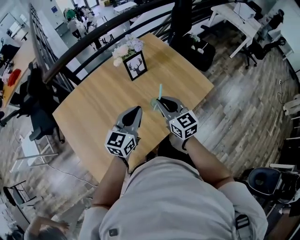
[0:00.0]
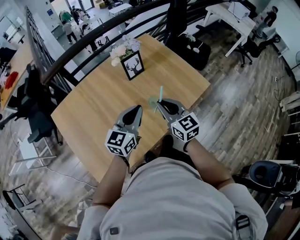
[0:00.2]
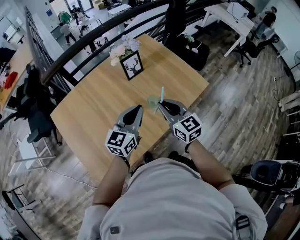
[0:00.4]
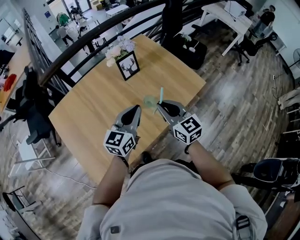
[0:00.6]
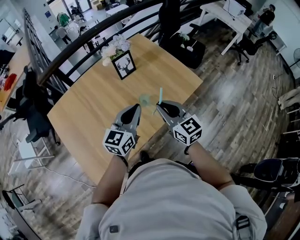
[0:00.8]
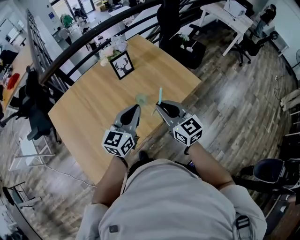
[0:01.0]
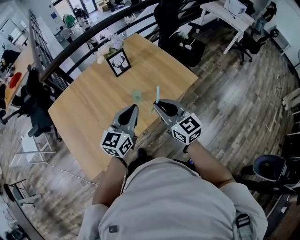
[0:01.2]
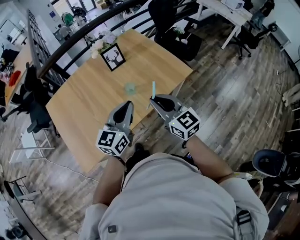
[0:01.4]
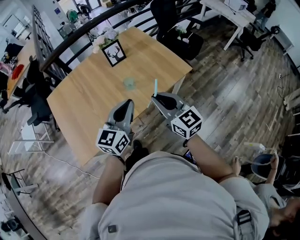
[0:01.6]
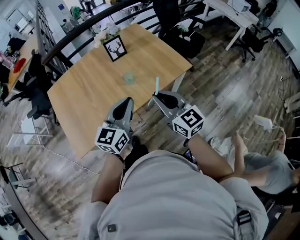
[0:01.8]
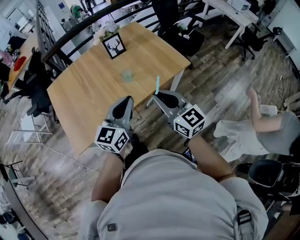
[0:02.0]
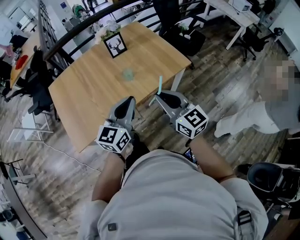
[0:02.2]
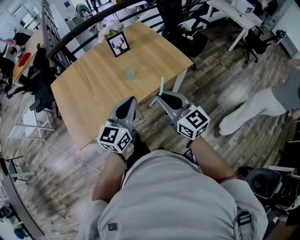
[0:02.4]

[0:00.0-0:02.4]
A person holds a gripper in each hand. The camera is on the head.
0:00.0 to 0:01.2: The right gripper goes roughly 20 cm backward, to the right and upward, while the left gripper travels to the right and backward by some 15 cm.
0:01.2 to 0:02.4: The right gripper travels backward and to the right by approximately 15 cm, while the left gripper travels backward by some 15 cm.

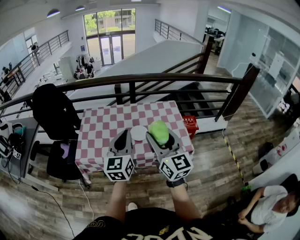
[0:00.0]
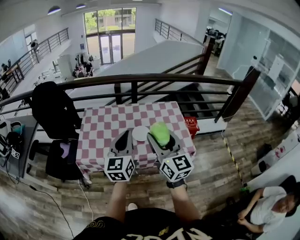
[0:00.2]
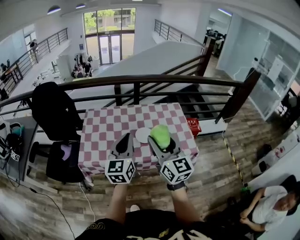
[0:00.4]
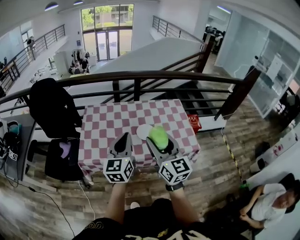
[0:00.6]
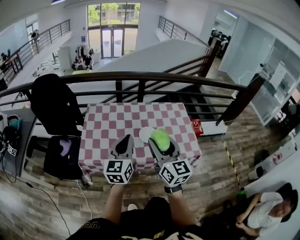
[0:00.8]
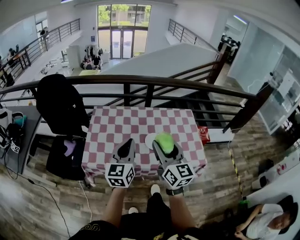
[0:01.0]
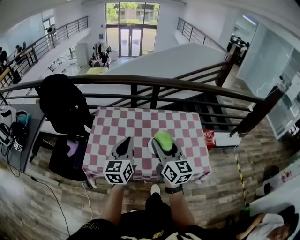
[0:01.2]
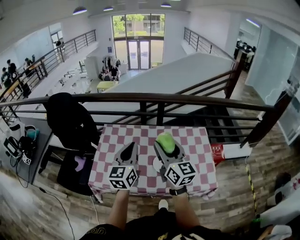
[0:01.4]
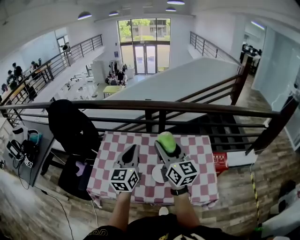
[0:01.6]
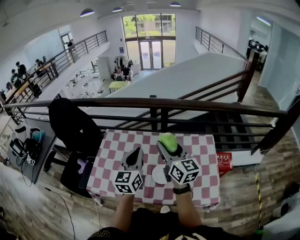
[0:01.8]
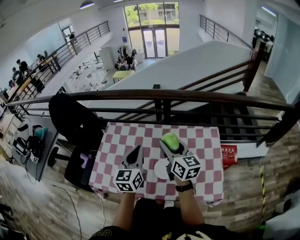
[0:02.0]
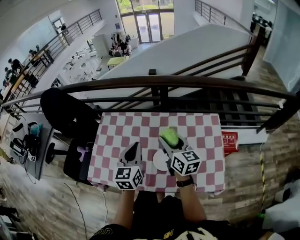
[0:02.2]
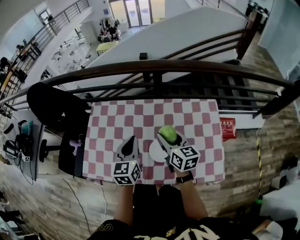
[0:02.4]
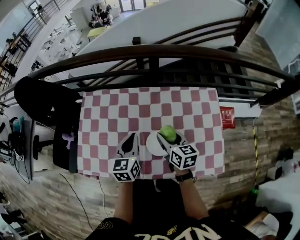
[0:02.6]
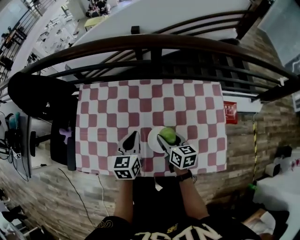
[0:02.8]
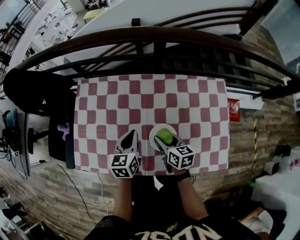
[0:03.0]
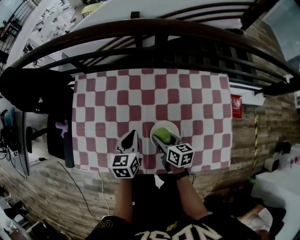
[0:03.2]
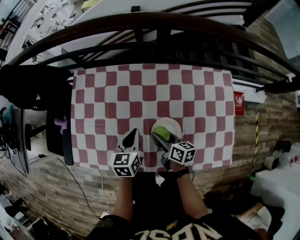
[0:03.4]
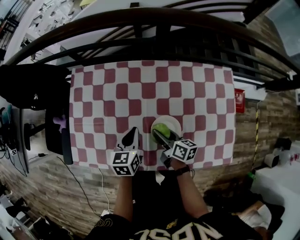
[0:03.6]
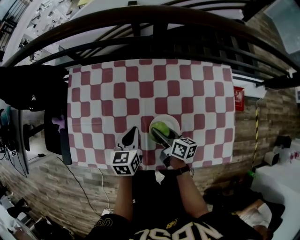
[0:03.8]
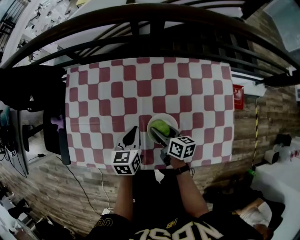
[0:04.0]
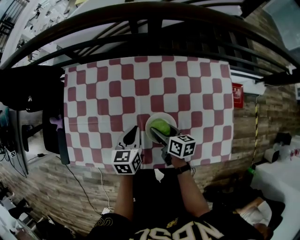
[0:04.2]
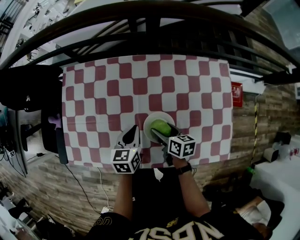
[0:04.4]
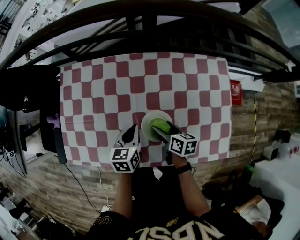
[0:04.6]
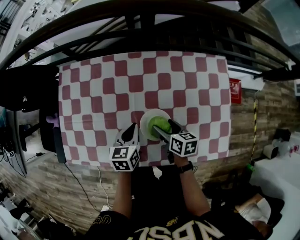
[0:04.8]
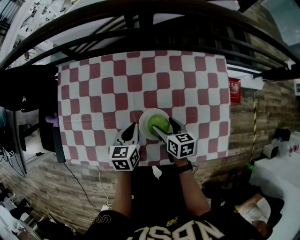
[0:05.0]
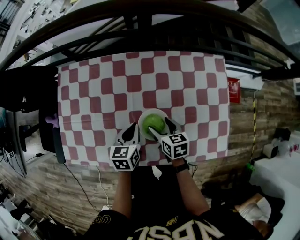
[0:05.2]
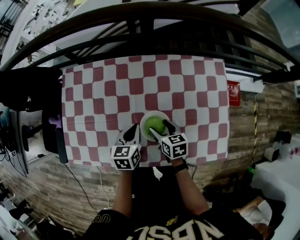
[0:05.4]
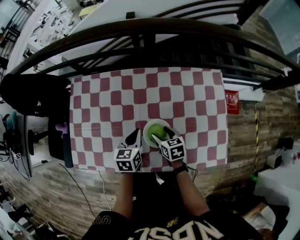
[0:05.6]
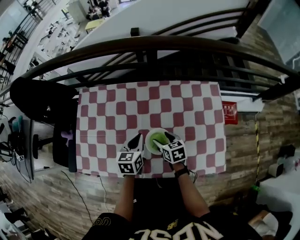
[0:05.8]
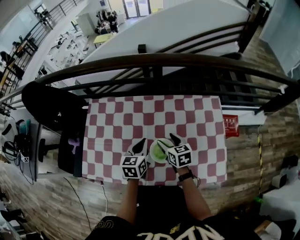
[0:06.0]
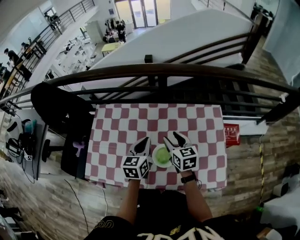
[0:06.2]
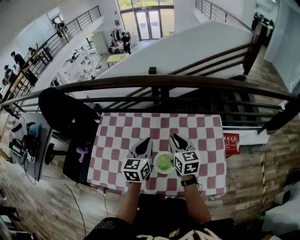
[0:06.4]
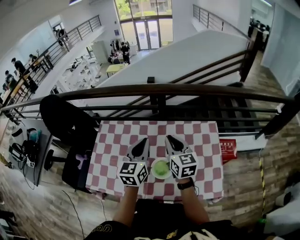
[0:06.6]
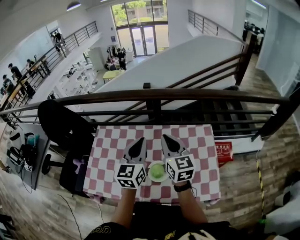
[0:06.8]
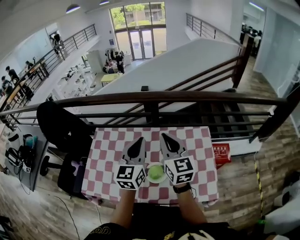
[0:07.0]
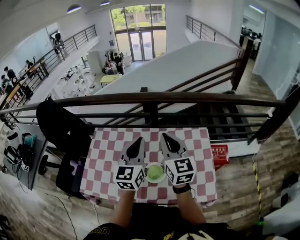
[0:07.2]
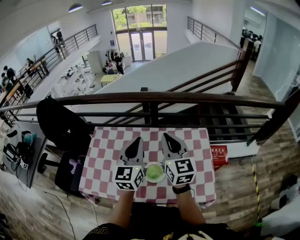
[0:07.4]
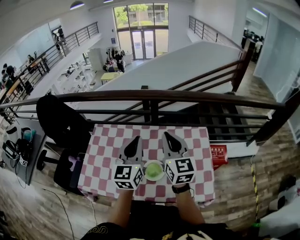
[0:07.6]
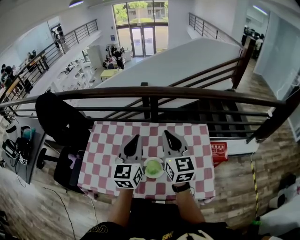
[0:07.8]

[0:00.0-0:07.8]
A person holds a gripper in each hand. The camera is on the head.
0:00.0 to 0:01.6: Both grippers travel together forward, about 25 cm.
0:01.6 to 0:03.2: The grippers both shift downward by about 35 cm. The left gripper tips its fingers downward by approximately 40 degrees; the right gripper points its fingers approximately 40 degrees further downward.
0:03.2 to 0:04.6: The right gripper changes place by about 5 cm, and opens, while the left gripper changes place by approximately 5 cm.
0:04.6 to 0:06.2: The two grippers go roughly 15 cm upward. The right gripper rotates roughly 40 degrees, and closes its fingers.
0:06.2 to 0:07.8: The grippers both shift upward by approximately 20 cm. The left gripper swivels some 30 degrees. The right gripper turns by roughly 30 degrees, and closes up.

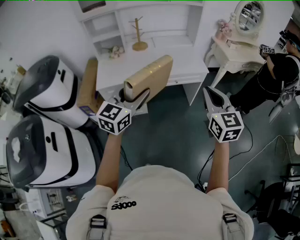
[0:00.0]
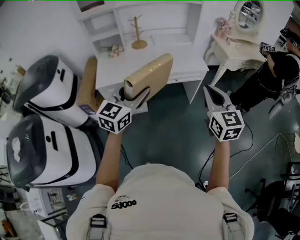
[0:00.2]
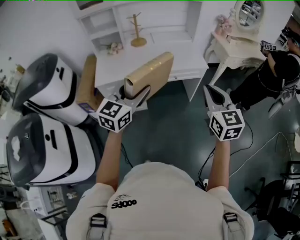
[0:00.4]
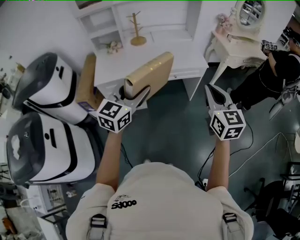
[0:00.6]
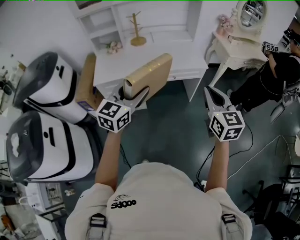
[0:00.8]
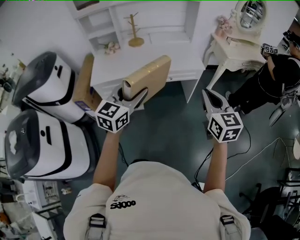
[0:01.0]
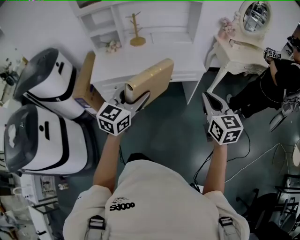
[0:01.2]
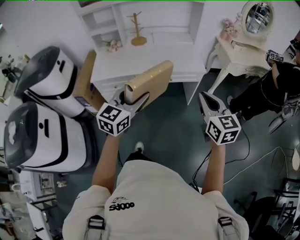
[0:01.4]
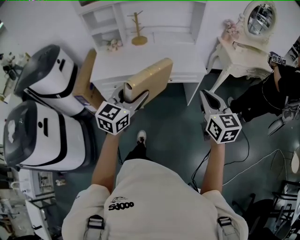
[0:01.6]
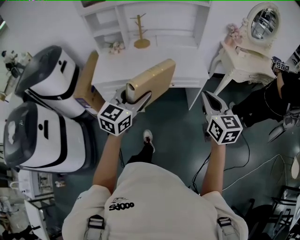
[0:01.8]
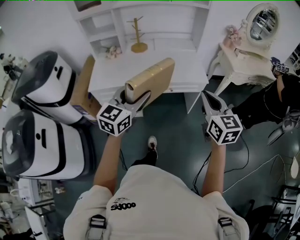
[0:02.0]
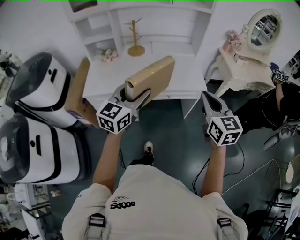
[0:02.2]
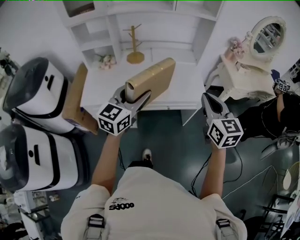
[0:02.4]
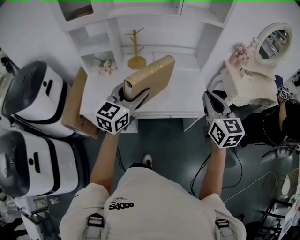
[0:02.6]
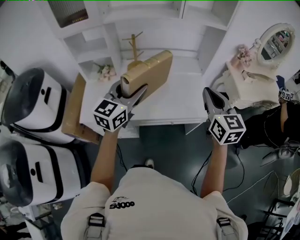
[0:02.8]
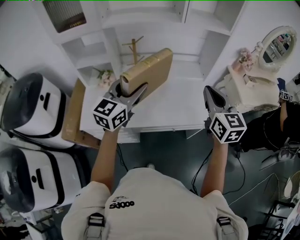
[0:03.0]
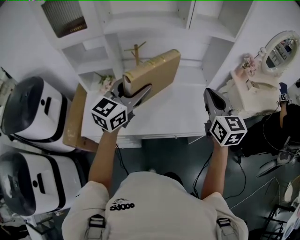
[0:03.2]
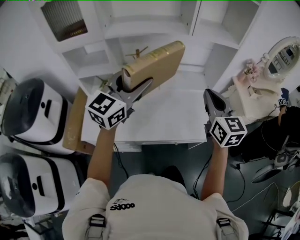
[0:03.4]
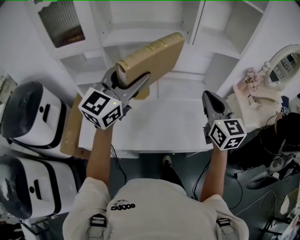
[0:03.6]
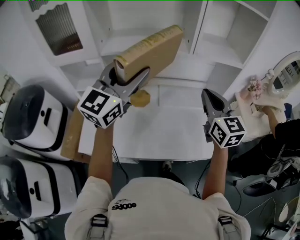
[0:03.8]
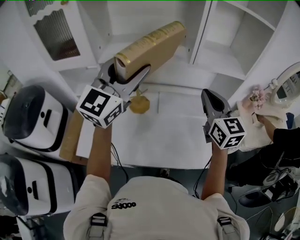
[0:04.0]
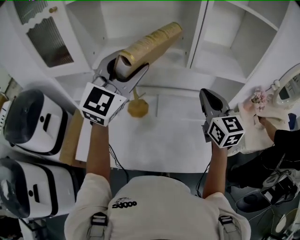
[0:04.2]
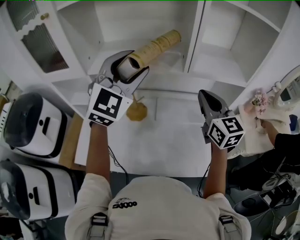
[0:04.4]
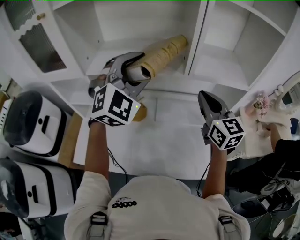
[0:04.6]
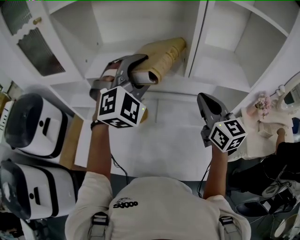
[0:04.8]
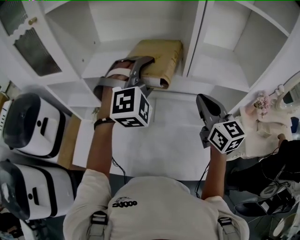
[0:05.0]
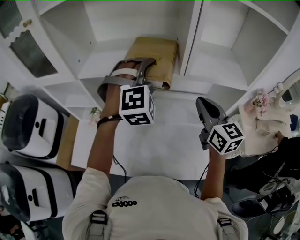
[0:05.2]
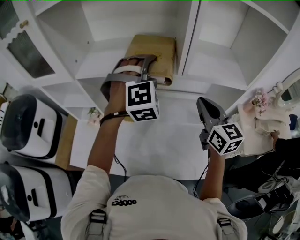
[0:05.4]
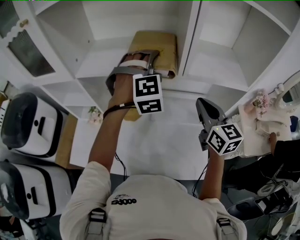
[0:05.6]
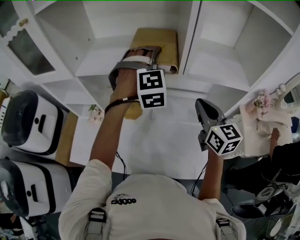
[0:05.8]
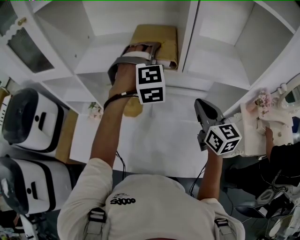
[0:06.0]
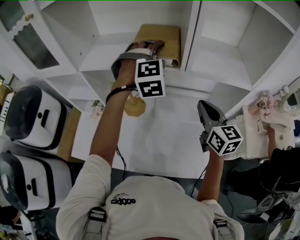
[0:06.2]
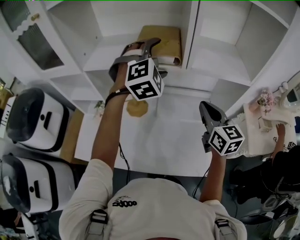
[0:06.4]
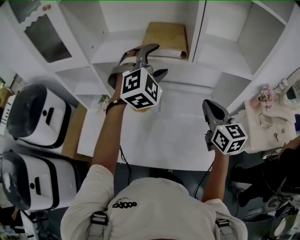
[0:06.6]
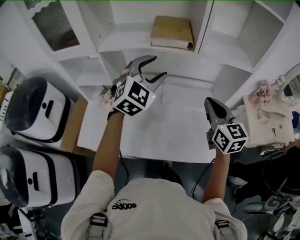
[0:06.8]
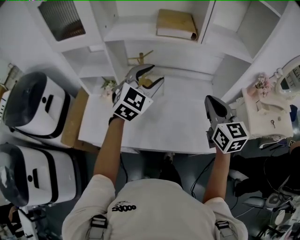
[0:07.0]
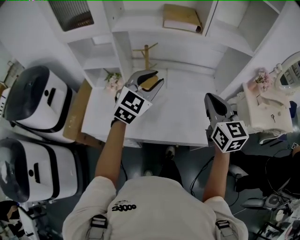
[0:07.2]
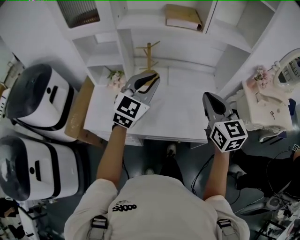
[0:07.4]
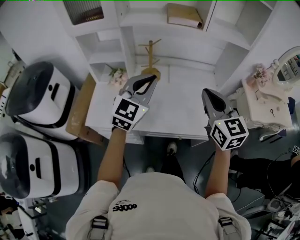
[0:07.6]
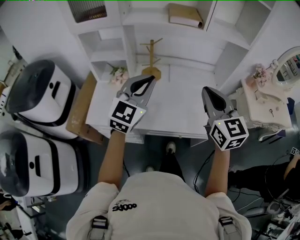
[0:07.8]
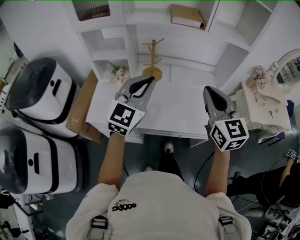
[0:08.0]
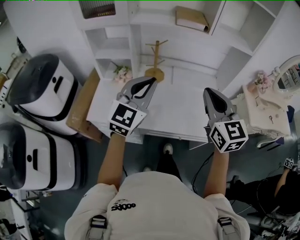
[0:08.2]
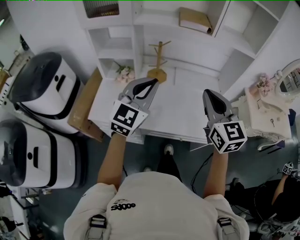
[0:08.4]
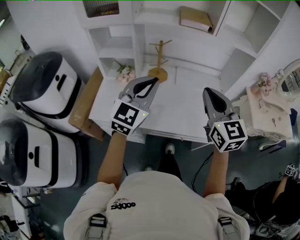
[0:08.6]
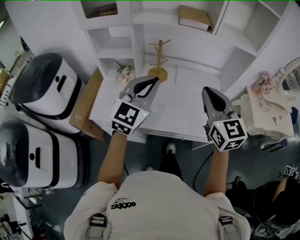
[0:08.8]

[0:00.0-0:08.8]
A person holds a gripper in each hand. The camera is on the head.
0:00.0 to 0:01.4: Both grippers travel together to the right, about 10 cm.
0:01.4 to 0:03.0: The pair of grippers is taken forward, some 40 cm.
0:03.0 to 0:04.4: The left gripper heads forward and upward, covering some 30 cm, and rolls clockwise, seen from behind, by roughly 40 degrees, while the right gripper is displaced forward by some 25 cm.
0:04.4 to 0:05.8: The right gripper is displaced downward by approximately 5 cm. Meanwhile the left gripper travels downward, forward and to the right by about 20 cm, tilts its fingers approximately 30 degrees downward, and opens its fingers.
0:05.8 to 0:07.4: The two grippers go approximately 30 cm backward and to the left. The left gripper twists roughly 50 degrees counterclockwise, seen from behind, and closes up.
0:07.4 to 0:08.8: The left gripper moves backward, some 5 cm, while the right gripper ends up approximately 5 cm from where it was.

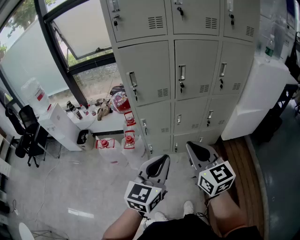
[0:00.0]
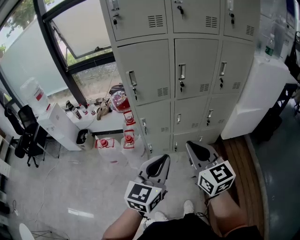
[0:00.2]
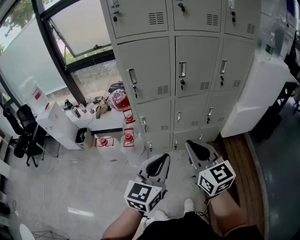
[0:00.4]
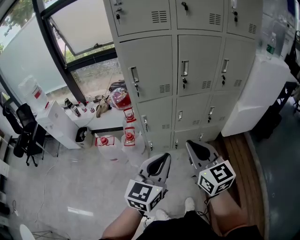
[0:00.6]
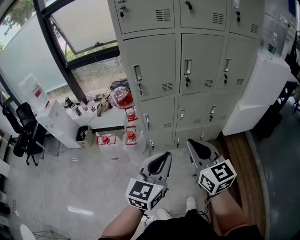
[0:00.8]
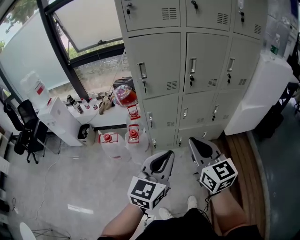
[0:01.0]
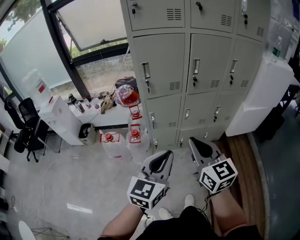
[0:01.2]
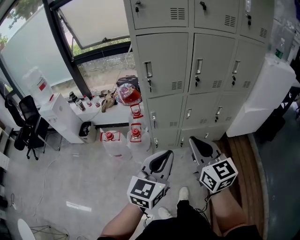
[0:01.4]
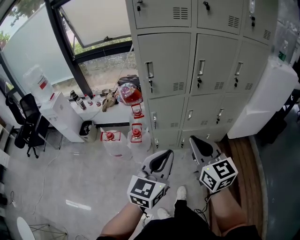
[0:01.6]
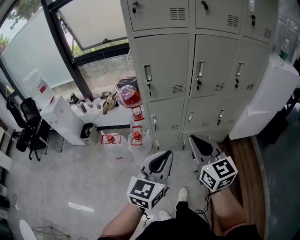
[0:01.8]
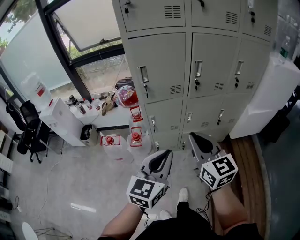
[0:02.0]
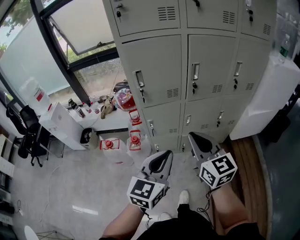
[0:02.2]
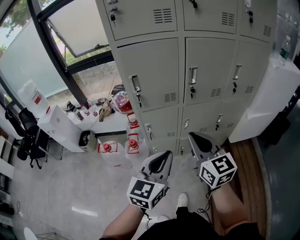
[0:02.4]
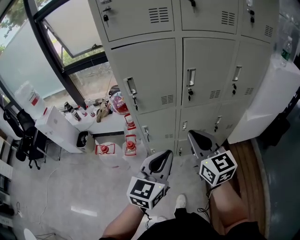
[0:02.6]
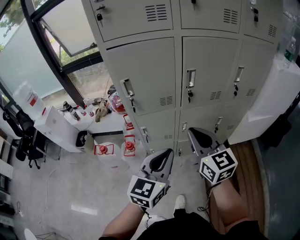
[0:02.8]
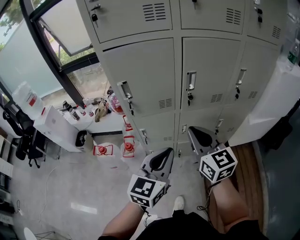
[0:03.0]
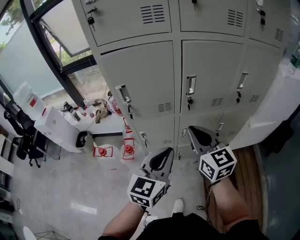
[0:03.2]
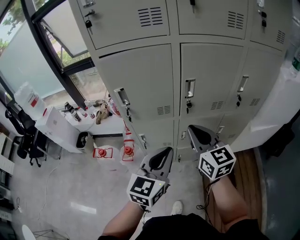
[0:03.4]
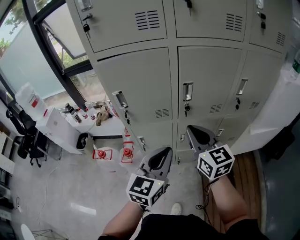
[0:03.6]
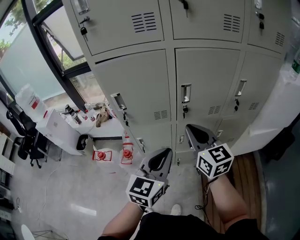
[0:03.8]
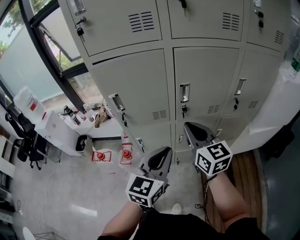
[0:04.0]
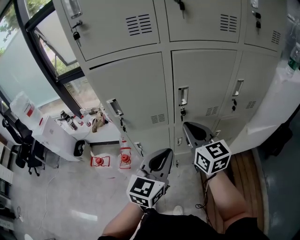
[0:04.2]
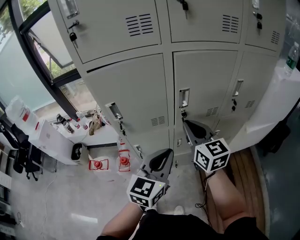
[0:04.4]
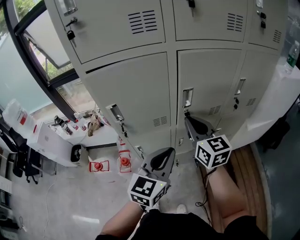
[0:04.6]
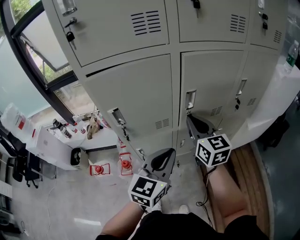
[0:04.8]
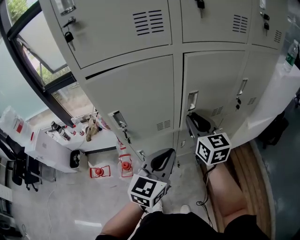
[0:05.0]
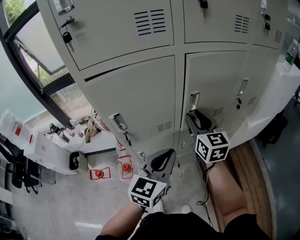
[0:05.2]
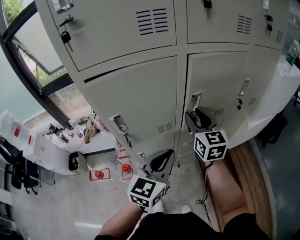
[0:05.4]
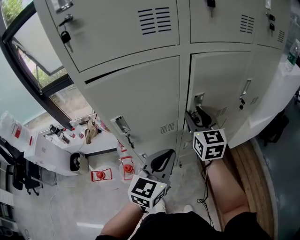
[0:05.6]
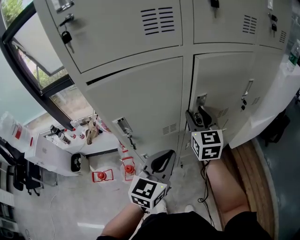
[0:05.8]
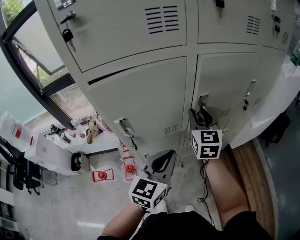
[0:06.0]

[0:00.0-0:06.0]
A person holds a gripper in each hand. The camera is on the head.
0:00.0 to 0:01.6: Both grippers move to the left, approximately 5 cm.
0:01.6 to 0:03.0: The right gripper moves forward, roughly 20 cm. Meanwhile the left gripper heads forward and to the right, covering approximately 20 cm.
0:03.0 to 0:04.4: Both grippers move forward, about 10 cm.
0:04.4 to 0:06.0: The right gripper shifts some 10 cm forward, changes its angle by some 30 degrees, and opens; the left gripper heads to the left, covering roughly 10 cm.
